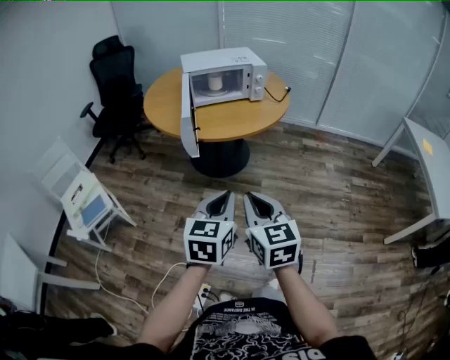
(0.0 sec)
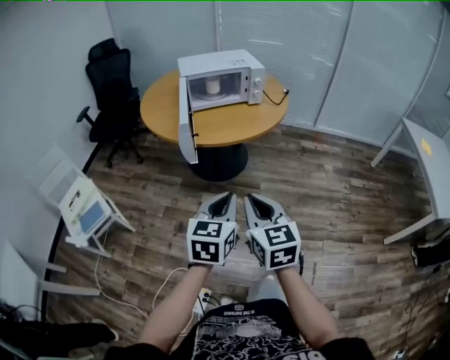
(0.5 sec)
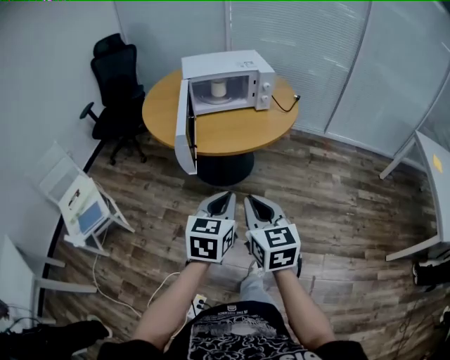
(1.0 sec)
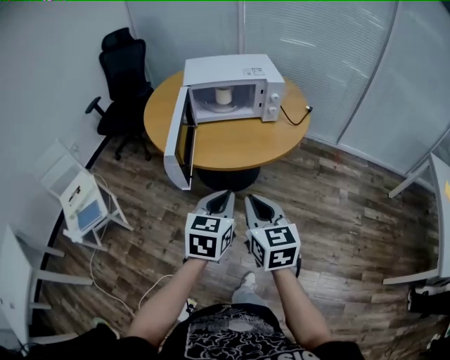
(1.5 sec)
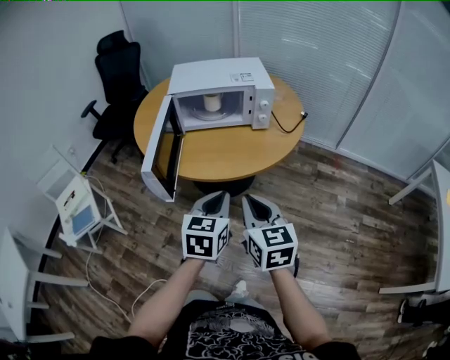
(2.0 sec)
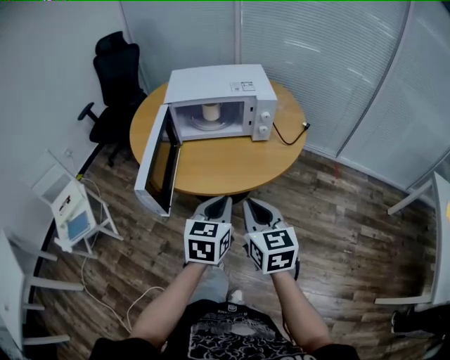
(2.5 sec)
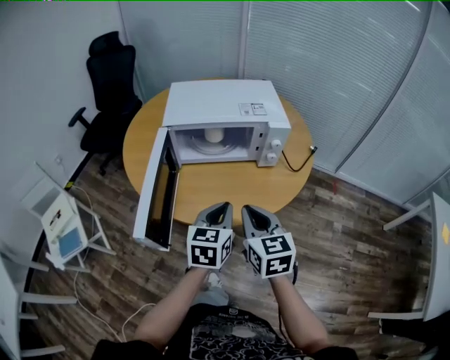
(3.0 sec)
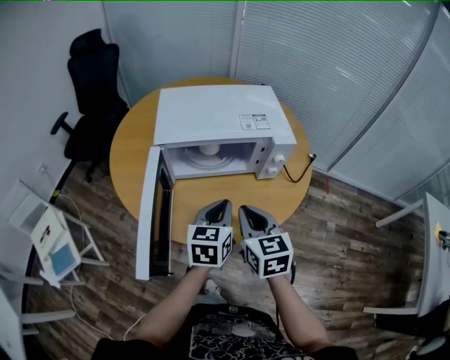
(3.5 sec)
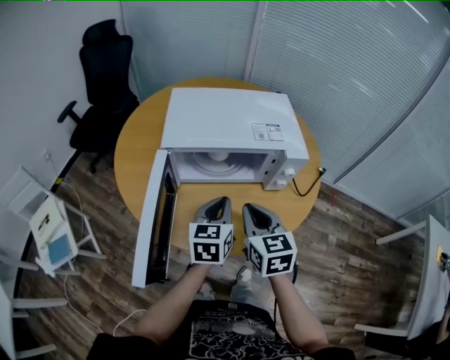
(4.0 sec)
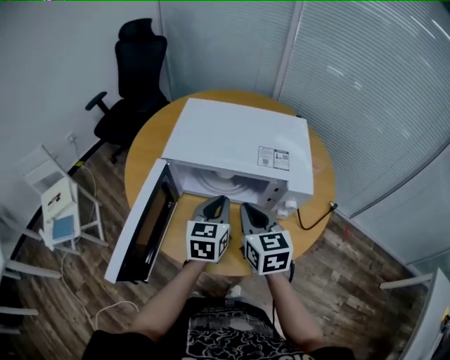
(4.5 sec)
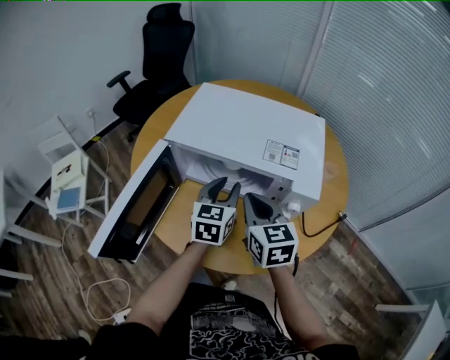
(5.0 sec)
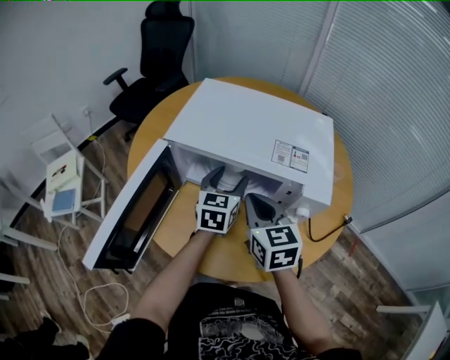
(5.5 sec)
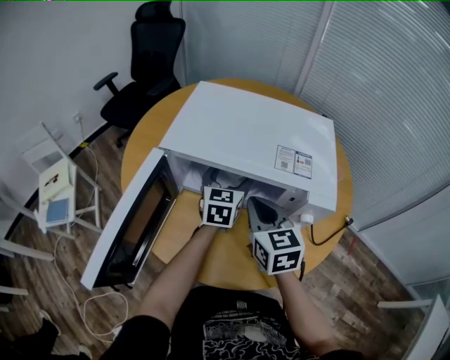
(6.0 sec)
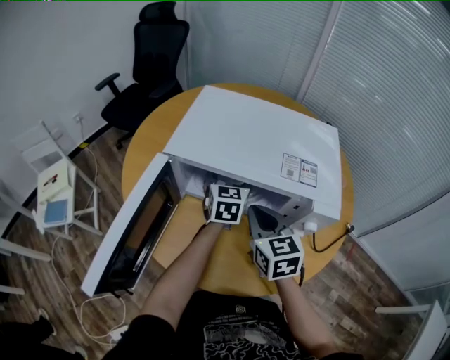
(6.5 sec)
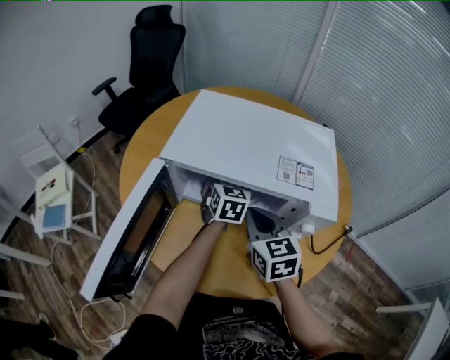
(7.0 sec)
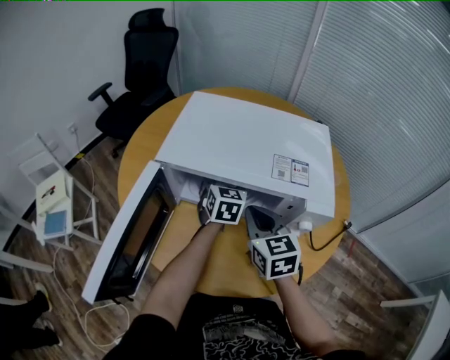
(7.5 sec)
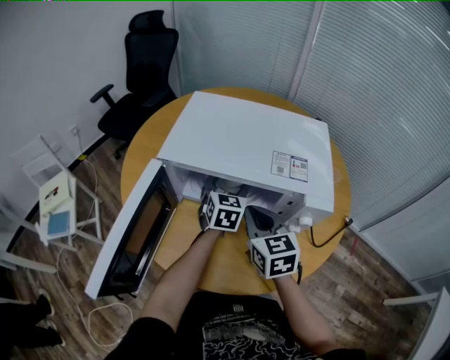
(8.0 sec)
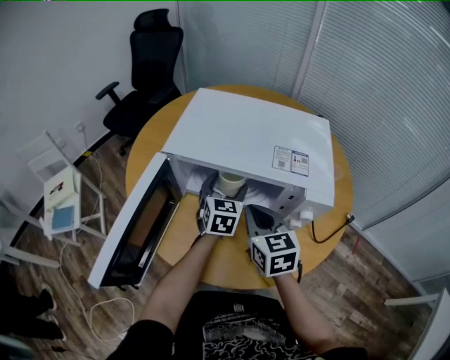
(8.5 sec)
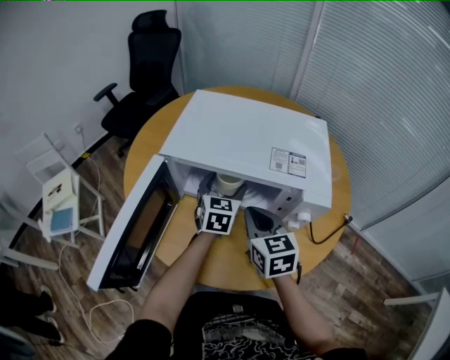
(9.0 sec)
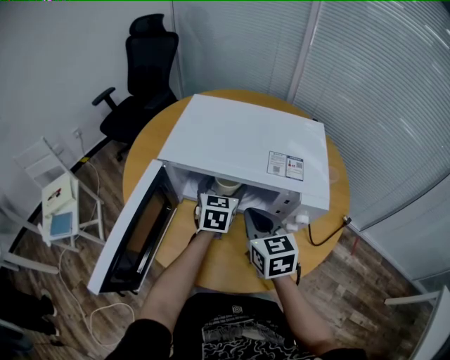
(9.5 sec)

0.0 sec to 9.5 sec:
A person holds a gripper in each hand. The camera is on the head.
0.0 sec to 2.0 sec: The left gripper travels forward by roughly 30 cm. Meanwhile the right gripper shifts about 30 cm forward and to the right.
2.0 sec to 4.0 sec: Both grippers travel together forward, about 30 cm.
4.0 sec to 5.5 sec: Both grippers move forward, approximately 15 cm. The right gripper changes its angle by about 20 degrees. Meanwhile the left gripper opens its fingers.
5.5 sec to 7.5 sec: The left gripper heads forward, covering some 10 cm.
7.5 sec to 9.5 sec: There are only small adjustments of the grippers.

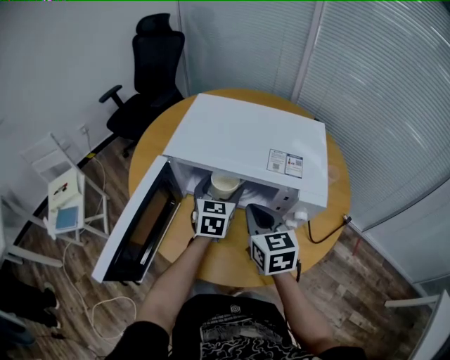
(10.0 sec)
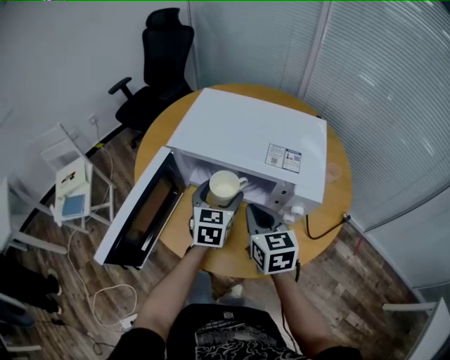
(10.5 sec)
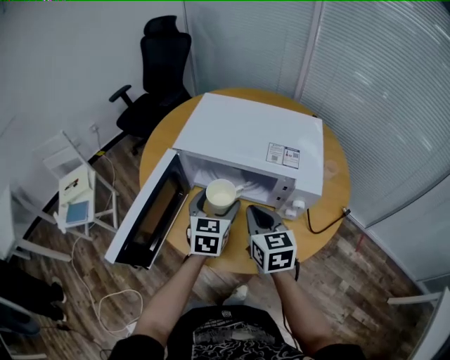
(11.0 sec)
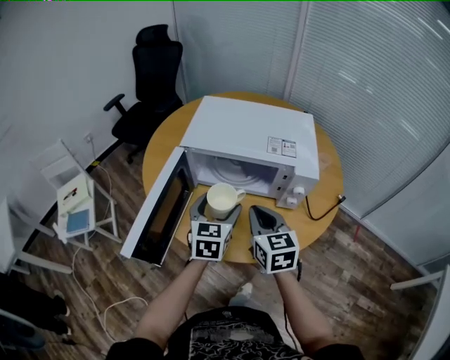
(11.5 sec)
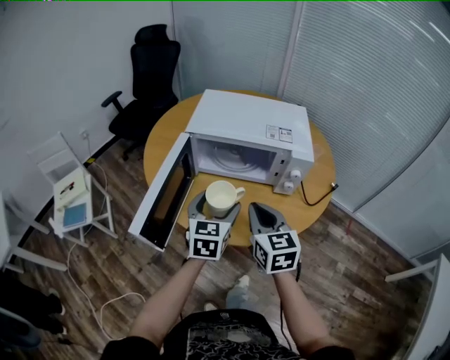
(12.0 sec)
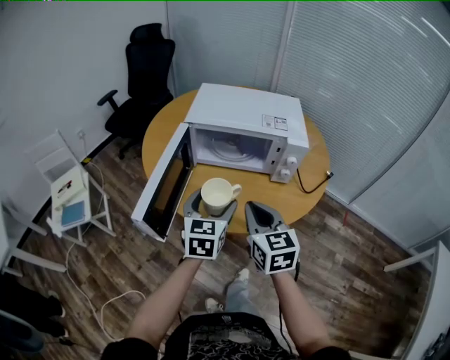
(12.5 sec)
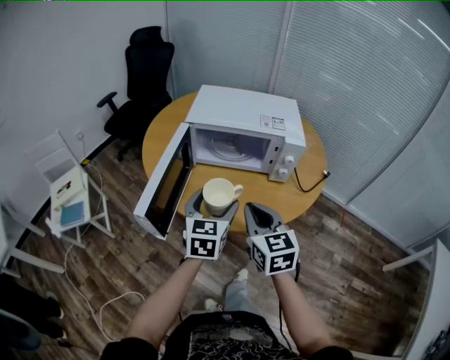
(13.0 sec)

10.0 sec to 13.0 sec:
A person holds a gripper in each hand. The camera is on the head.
10.0 sec to 11.5 sec: The left gripper moves backward and upward, roughly 15 cm. Meanwhile the right gripper goes approximately 10 cm backward.
11.5 sec to 13.0 sec: Both grippers travel together backward, roughly 15 cm.

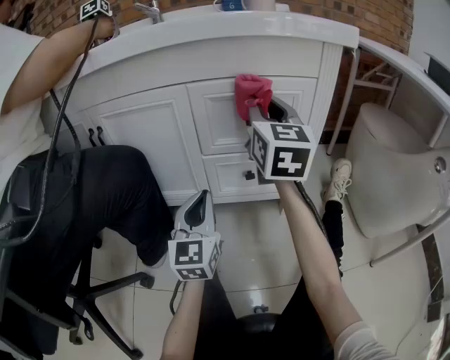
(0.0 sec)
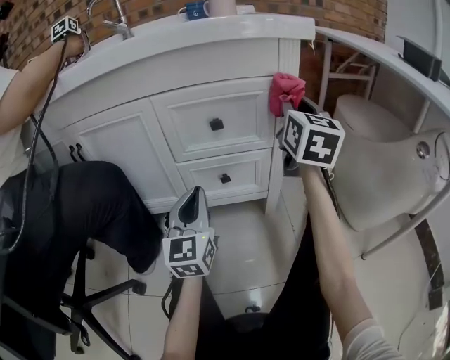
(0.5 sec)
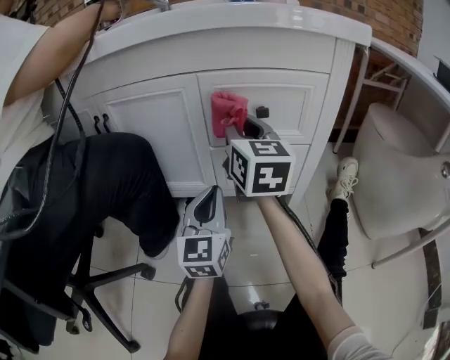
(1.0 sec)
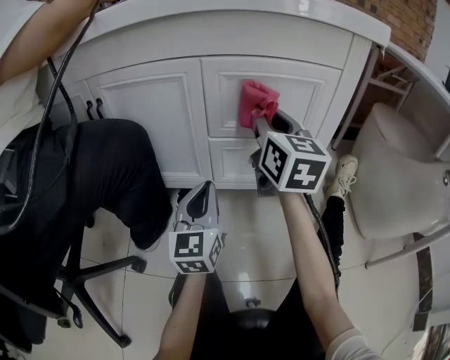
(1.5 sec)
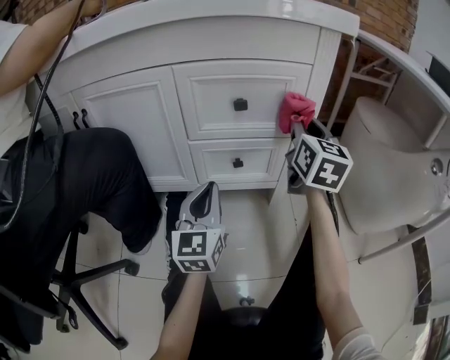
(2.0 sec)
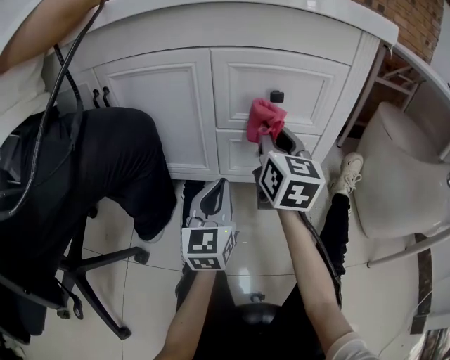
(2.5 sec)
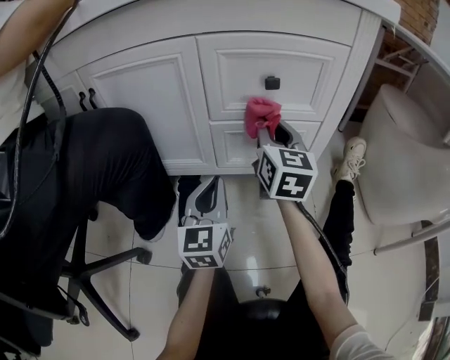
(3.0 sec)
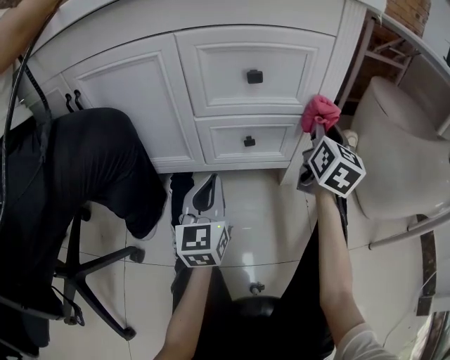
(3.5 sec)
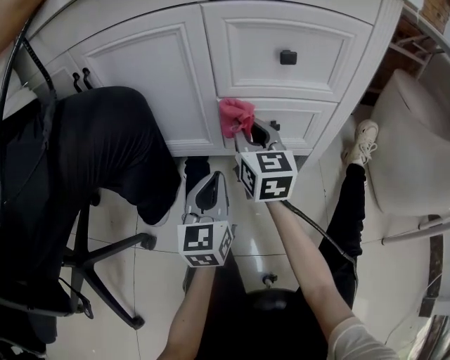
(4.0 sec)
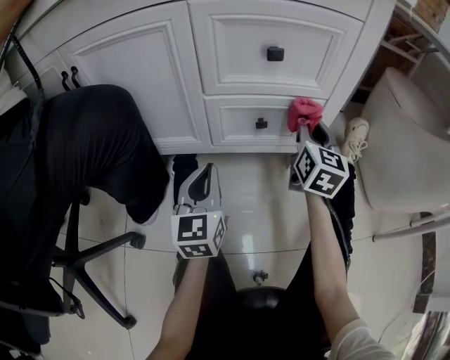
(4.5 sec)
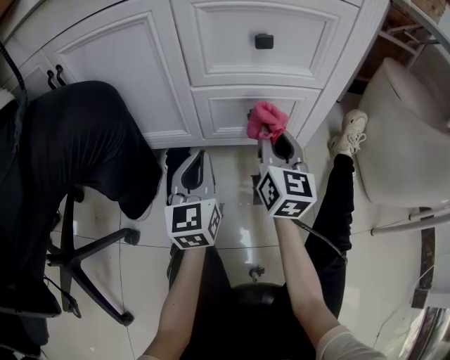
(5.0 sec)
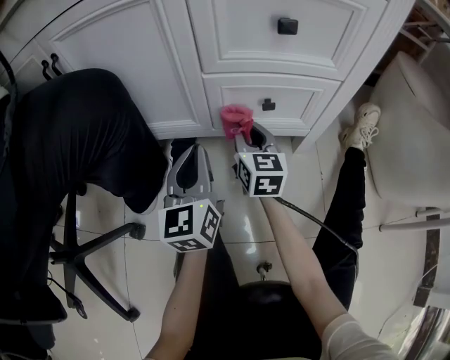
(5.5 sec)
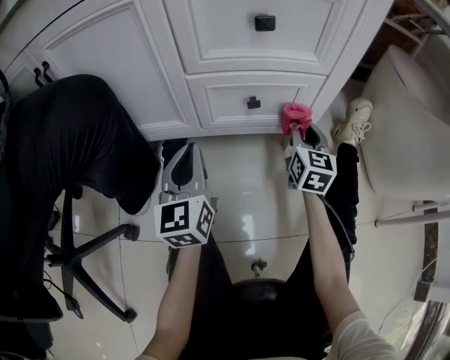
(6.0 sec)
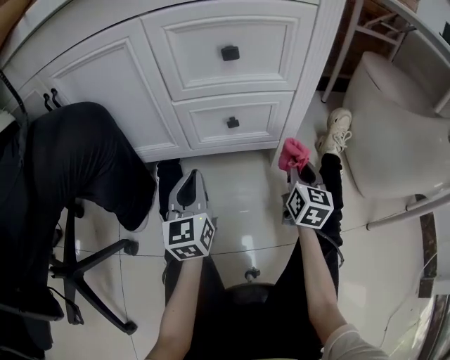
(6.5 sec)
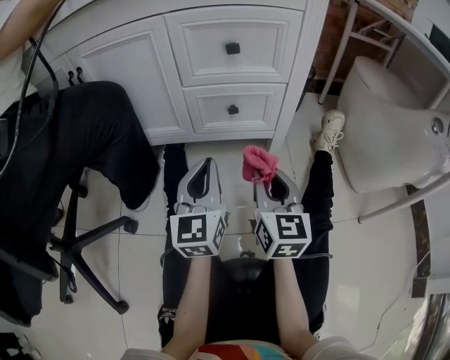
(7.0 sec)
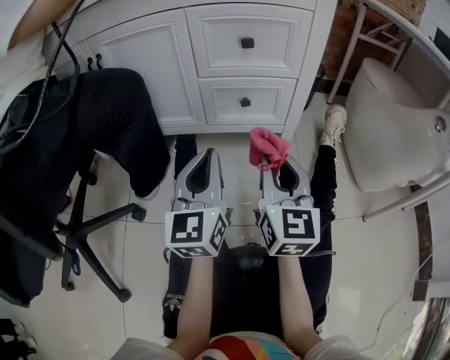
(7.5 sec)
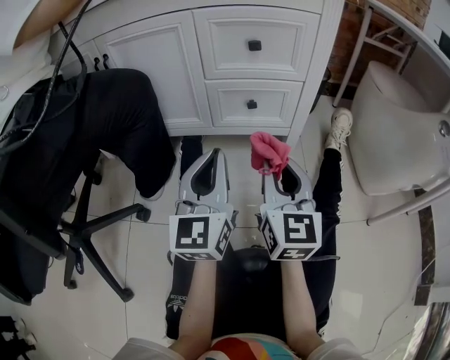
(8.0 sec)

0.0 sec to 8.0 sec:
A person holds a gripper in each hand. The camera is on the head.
0.0 sec to 2.0 sec: The left gripper moves left and right over roughly 5 cm, changing direction 2 times; the right gripper goes left and right, approximately 25 cm each way, reversing 2 times.
2.0 sec to 4.0 sec: The left gripper goes some 10 cm downward and to the left. The right gripper moves left and right over roughly 25 cm, changing direction 2 times, and changes its angle by about 20 degrees.
4.0 sec to 6.0 sec: The right gripper swings left and right, about 20 cm each way, with 2 reversals, and turns by approximately 20 degrees.
6.0 sec to 8.0 sec: The left gripper travels backward, upward and to the right by about 20 cm; the right gripper heads backward and upward, covering about 30 cm.

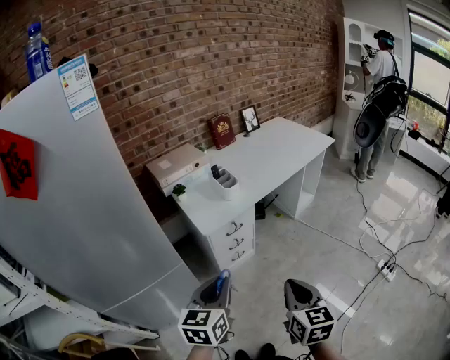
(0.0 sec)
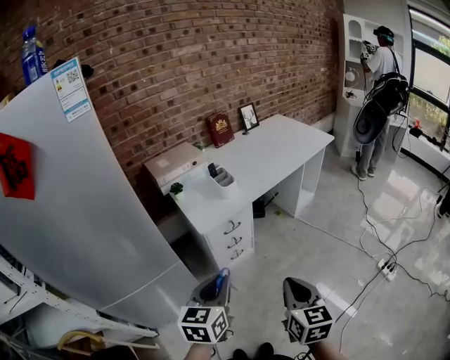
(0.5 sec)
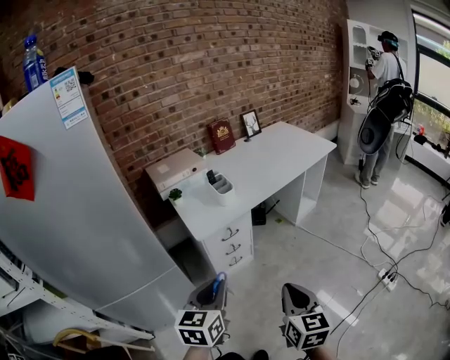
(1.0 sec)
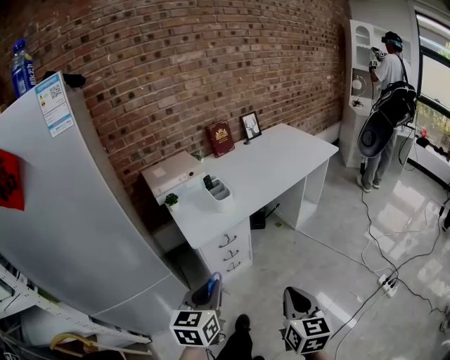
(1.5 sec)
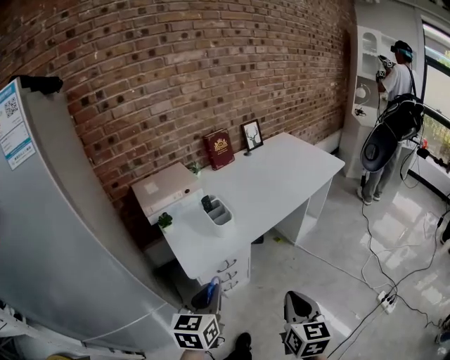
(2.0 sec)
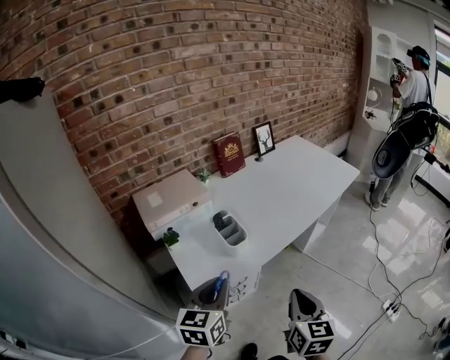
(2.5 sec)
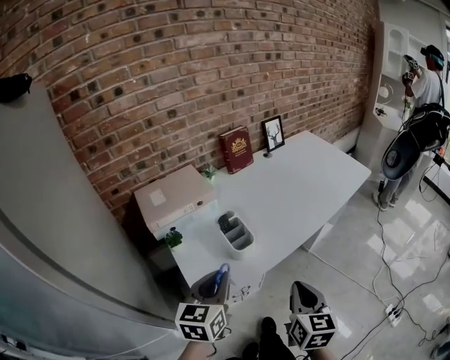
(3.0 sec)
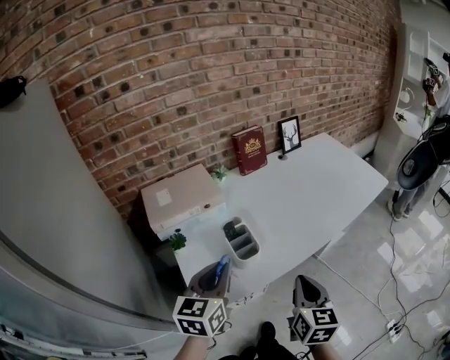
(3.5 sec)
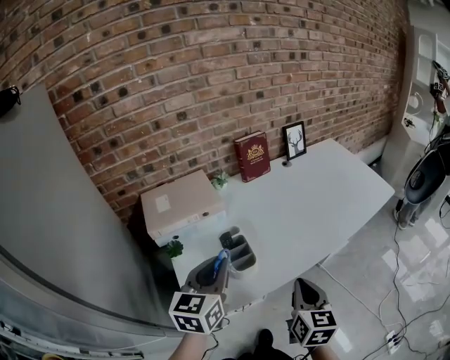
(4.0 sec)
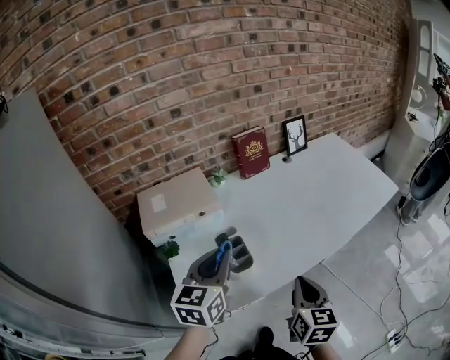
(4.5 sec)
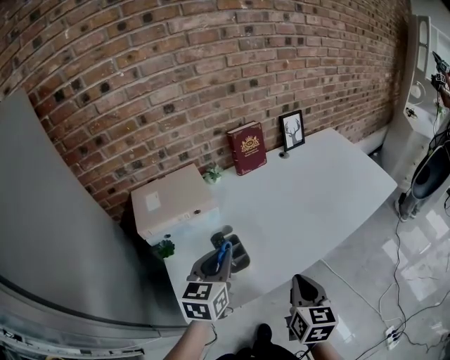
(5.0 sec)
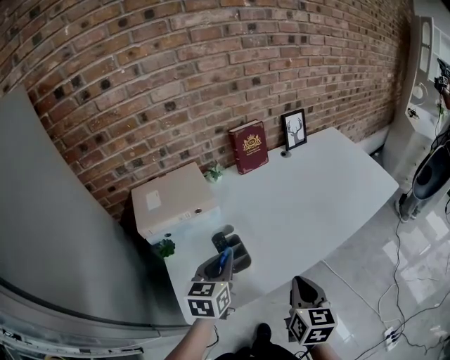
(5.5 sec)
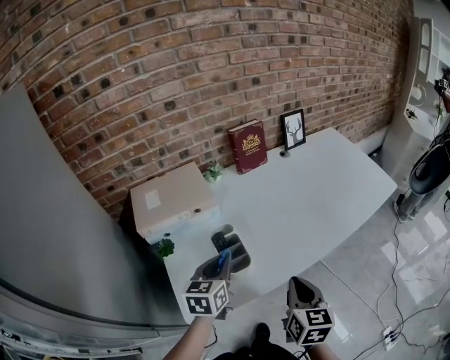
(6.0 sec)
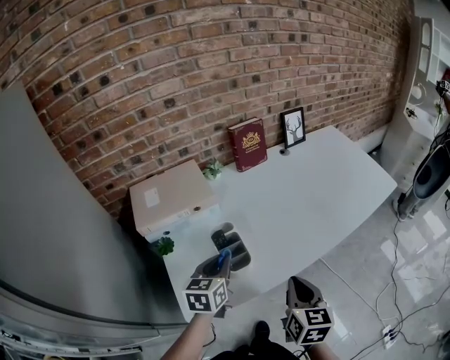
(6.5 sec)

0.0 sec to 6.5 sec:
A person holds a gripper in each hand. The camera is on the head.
0.0 sec to 2.0 sec: The grippers both shift forward by roughly 20 cm.
2.0 sec to 4.5 sec: The two grippers go some 35 cm forward.
4.5 sec to 6.5 sec: The left gripper goes some 10 cm downward.
